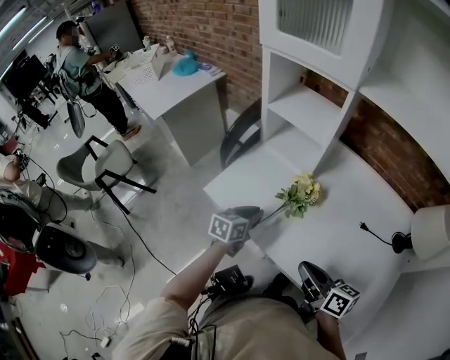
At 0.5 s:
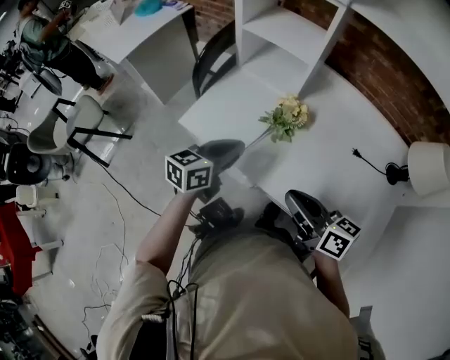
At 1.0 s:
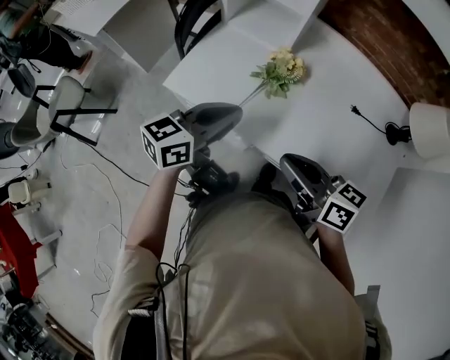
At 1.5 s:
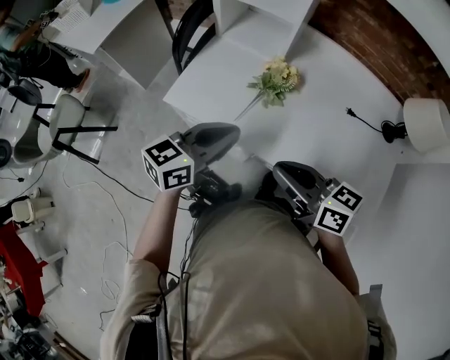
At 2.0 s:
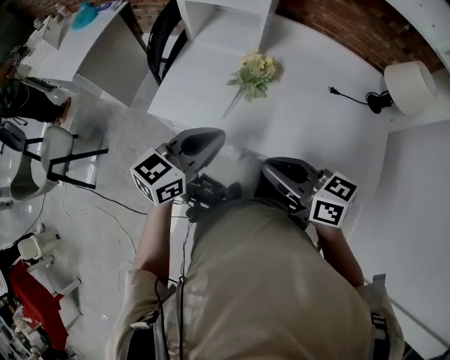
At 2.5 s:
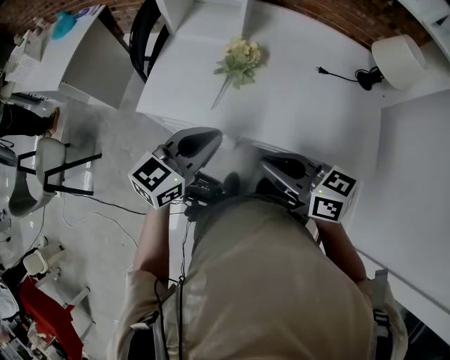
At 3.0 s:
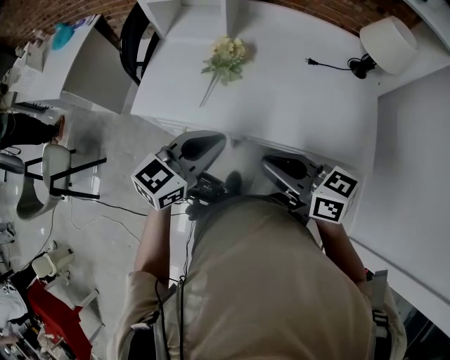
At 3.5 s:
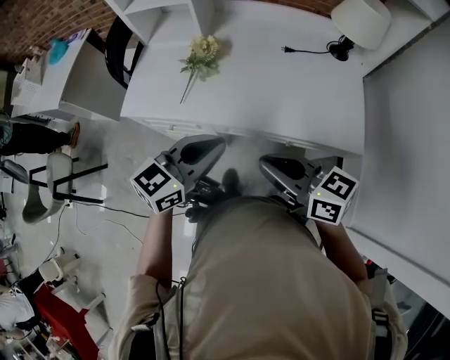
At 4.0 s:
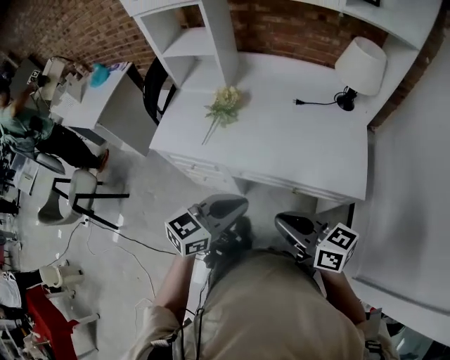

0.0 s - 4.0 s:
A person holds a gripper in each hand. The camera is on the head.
0.0 s - 2.0 s: The left gripper travels upward and backward by approximately 20 cm, and swivels approximately 40 degrees, while the right gripper moves to the left and backward, roughly 10 cm.
2.0 s - 4.0 s: The left gripper goes roughly 25 cm to the right and backward. Meanwhile the right gripper travels backward and to the right by roughly 20 cm.

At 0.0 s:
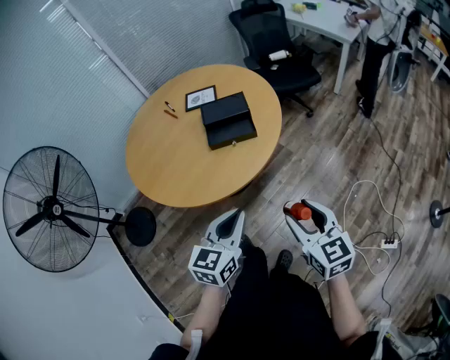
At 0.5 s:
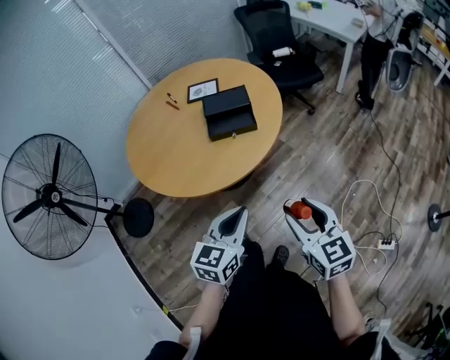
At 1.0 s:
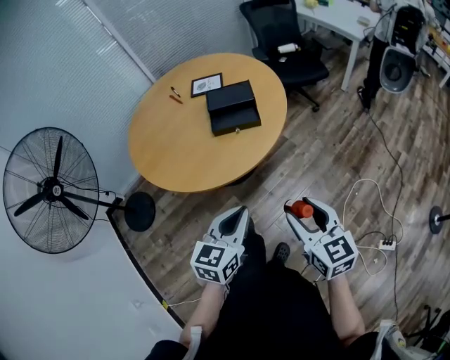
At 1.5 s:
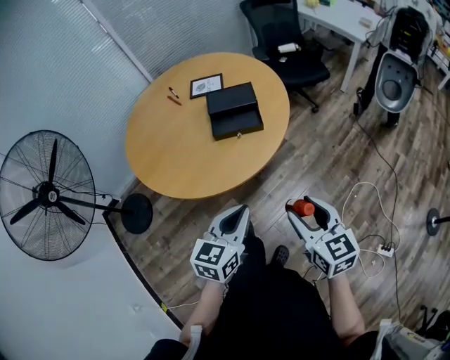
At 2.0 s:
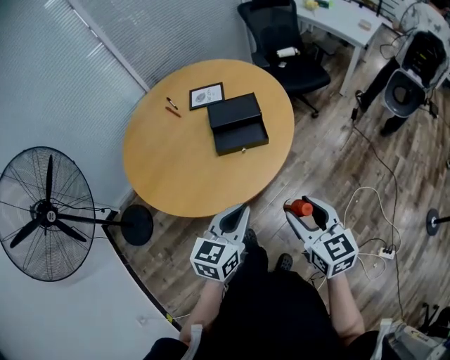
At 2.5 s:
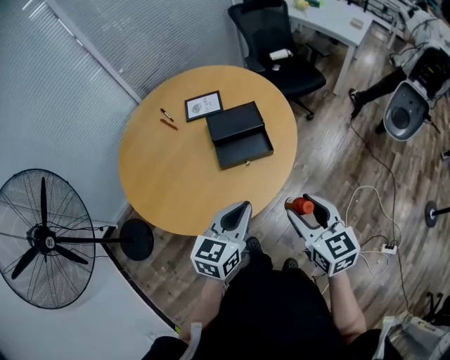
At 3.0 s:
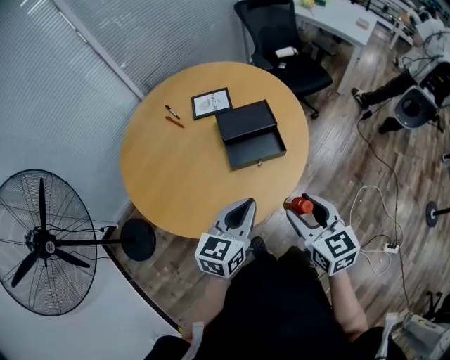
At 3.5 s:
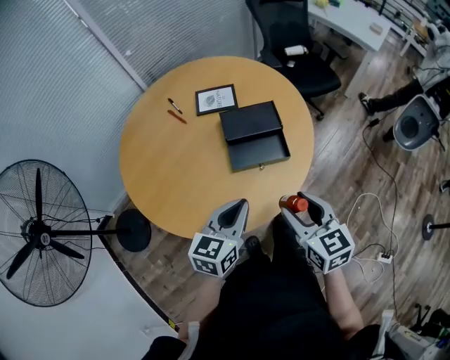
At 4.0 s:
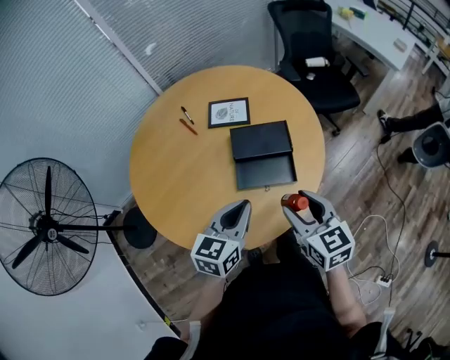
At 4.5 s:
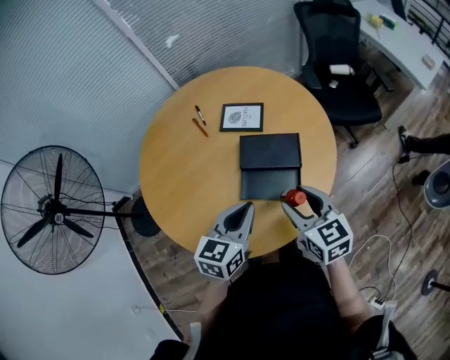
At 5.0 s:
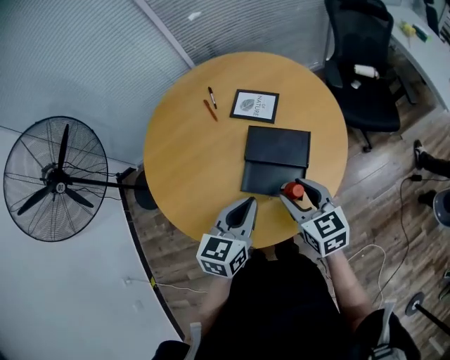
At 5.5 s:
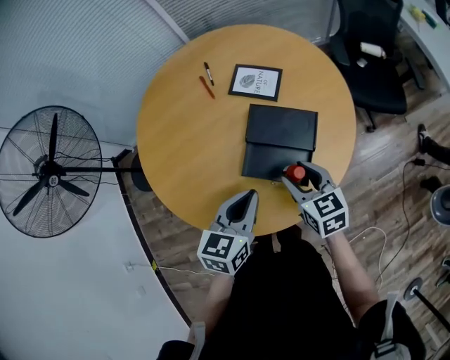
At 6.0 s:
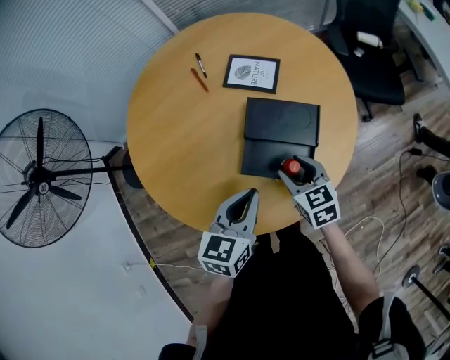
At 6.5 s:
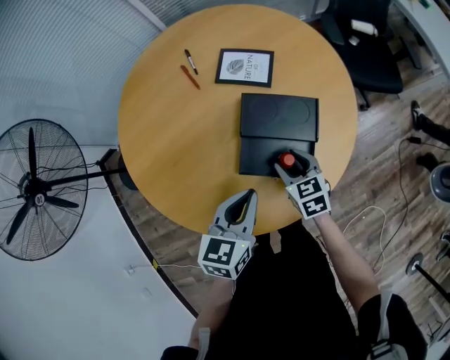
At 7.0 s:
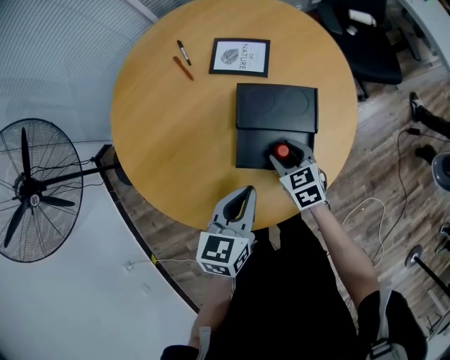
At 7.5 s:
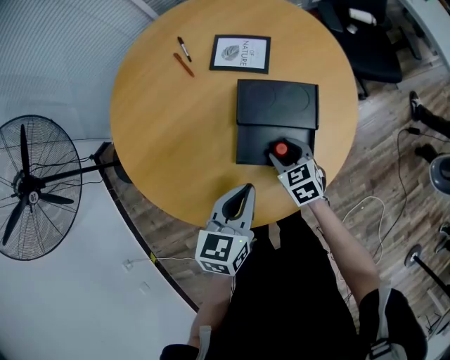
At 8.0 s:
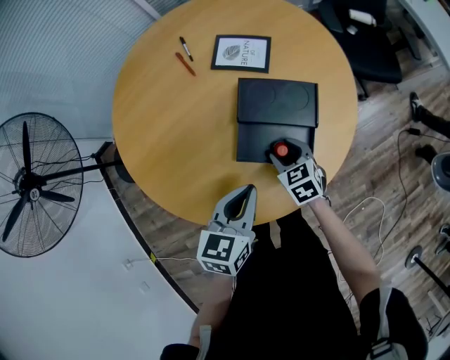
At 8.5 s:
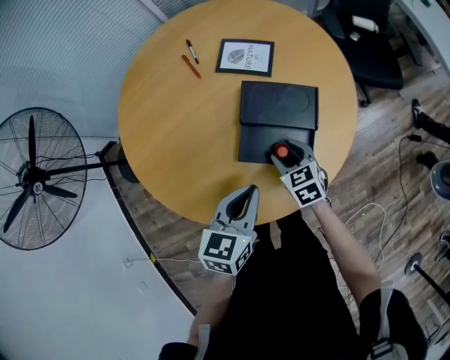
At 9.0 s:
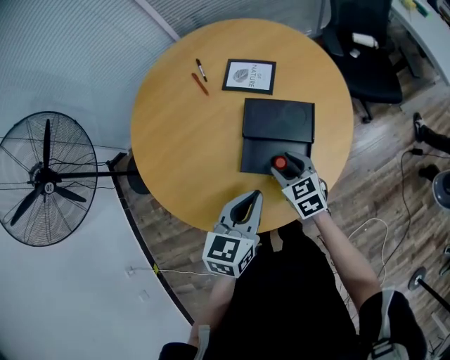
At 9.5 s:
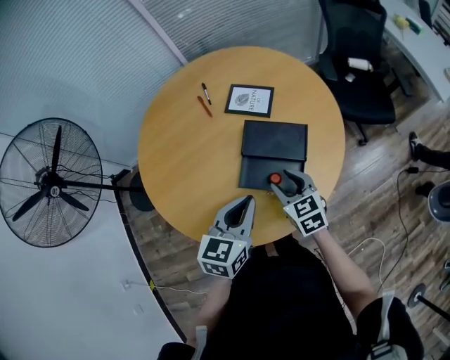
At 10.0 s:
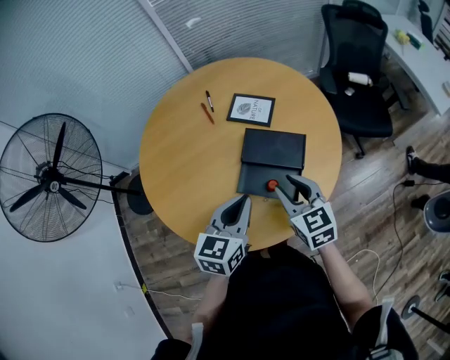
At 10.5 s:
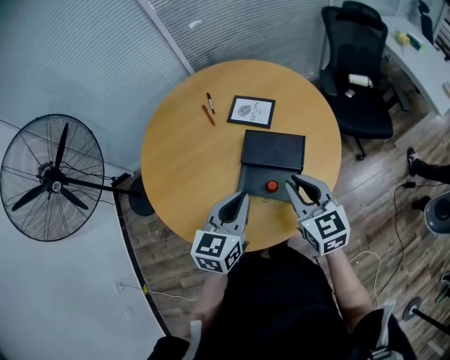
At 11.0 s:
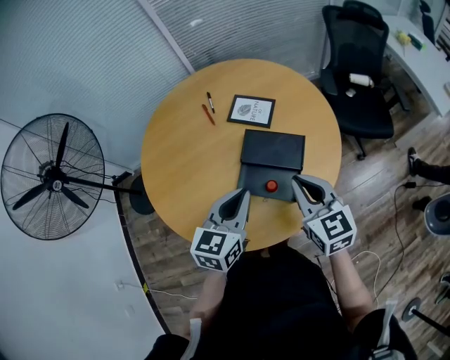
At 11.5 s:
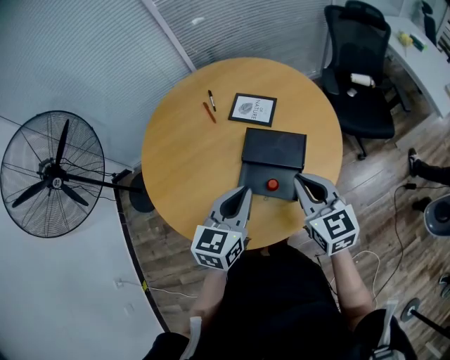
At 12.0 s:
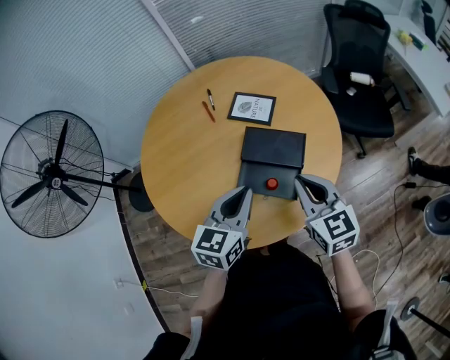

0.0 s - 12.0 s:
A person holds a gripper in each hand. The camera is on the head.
0.0 s - 2.0 s: The grippers both shift forward by roughly 10 cm.
2.0 s - 4.0 s: The grippers both shift forward by roughly 20 cm.
4.0 s - 6.0 s: The left gripper goes some 10 cm downward and forward. The right gripper goes roughly 20 cm downward and forward, and swivels roughly 20 degrees.
6.0 s - 8.0 s: The right gripper shifts roughly 10 cm downward.
8.0 s - 10.0 s: The right gripper moves upward, about 20 cm, and changes its angle by roughly 20 degrees. Meanwhile the left gripper is displaced upward by approximately 10 cm.
10.0 s - 12.0 s: The right gripper goes about 5 cm upward, and closes up.

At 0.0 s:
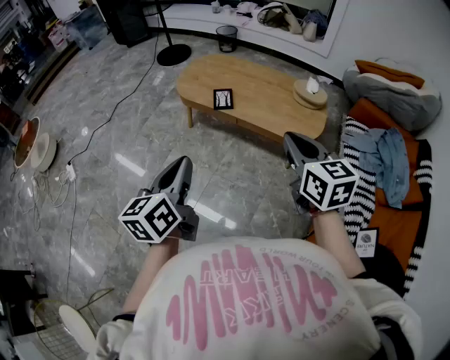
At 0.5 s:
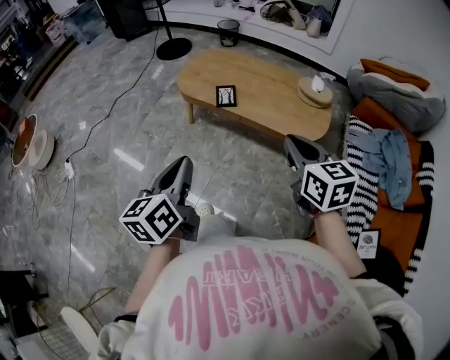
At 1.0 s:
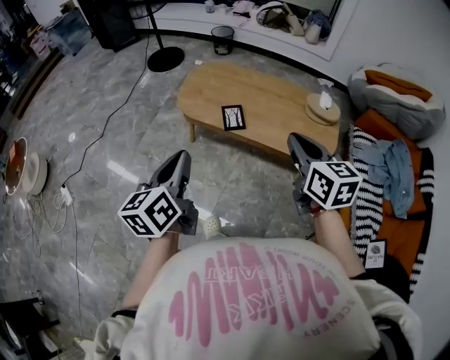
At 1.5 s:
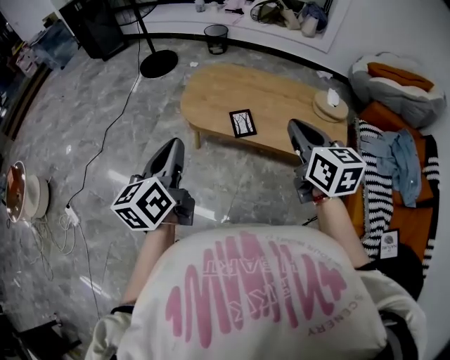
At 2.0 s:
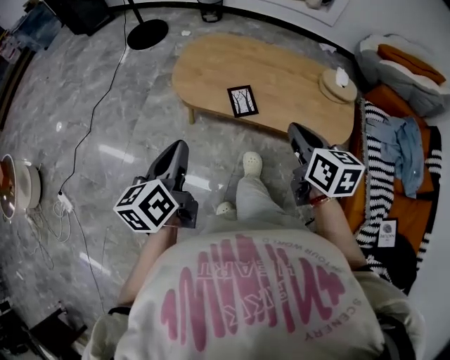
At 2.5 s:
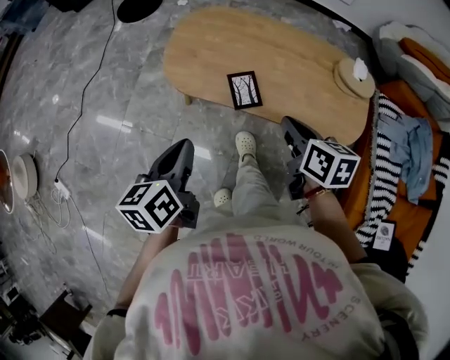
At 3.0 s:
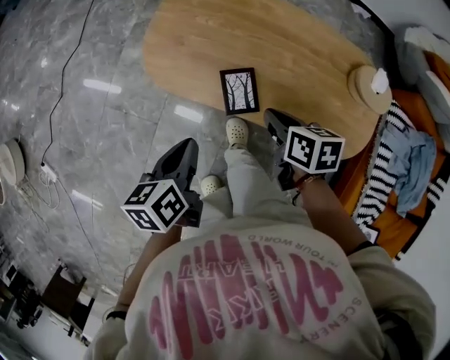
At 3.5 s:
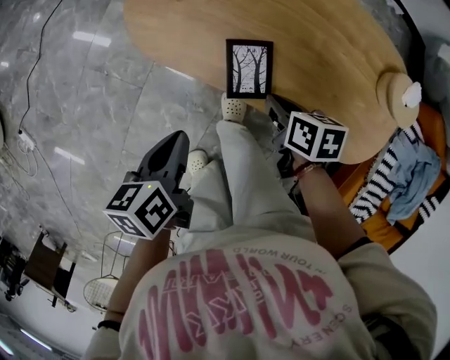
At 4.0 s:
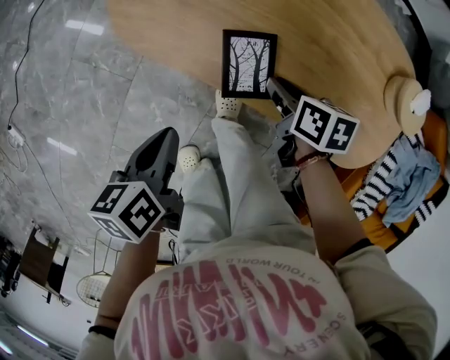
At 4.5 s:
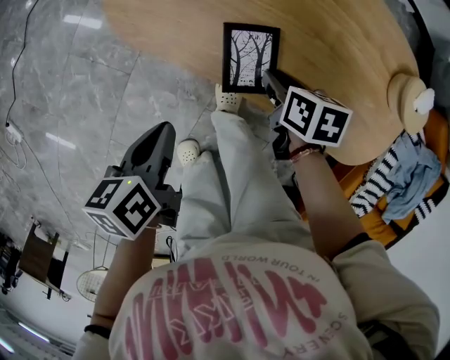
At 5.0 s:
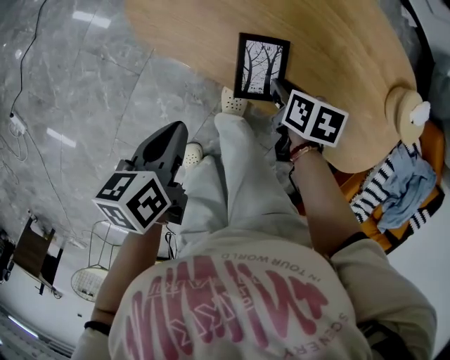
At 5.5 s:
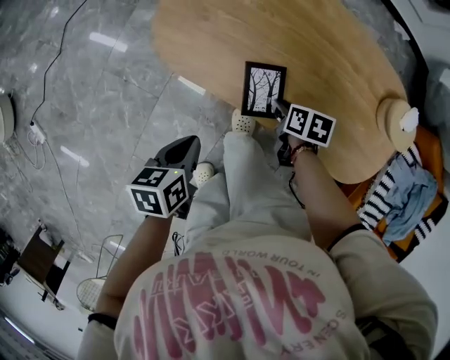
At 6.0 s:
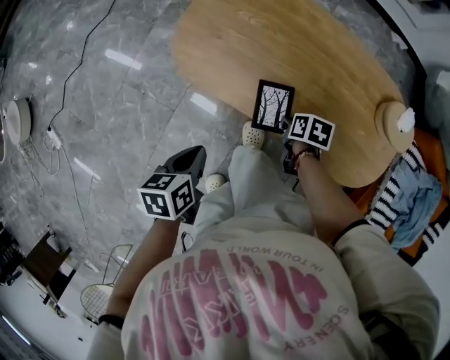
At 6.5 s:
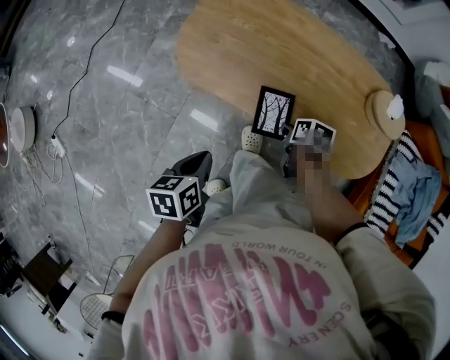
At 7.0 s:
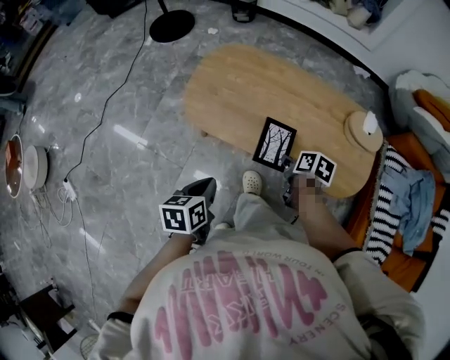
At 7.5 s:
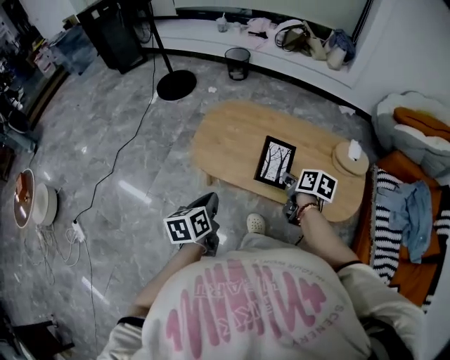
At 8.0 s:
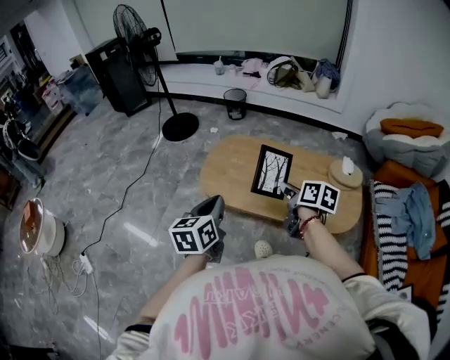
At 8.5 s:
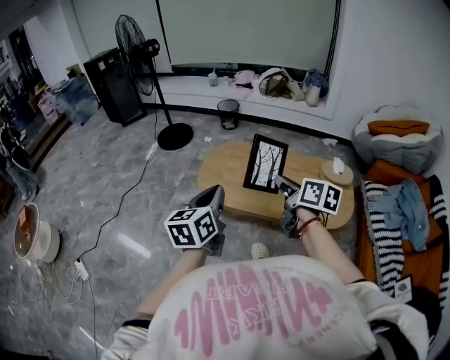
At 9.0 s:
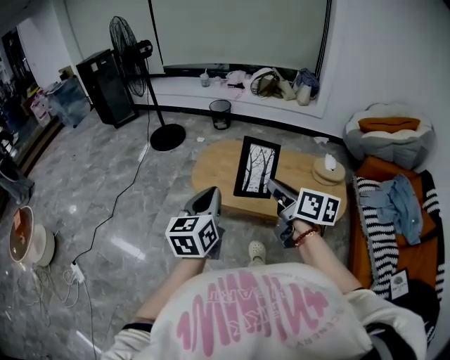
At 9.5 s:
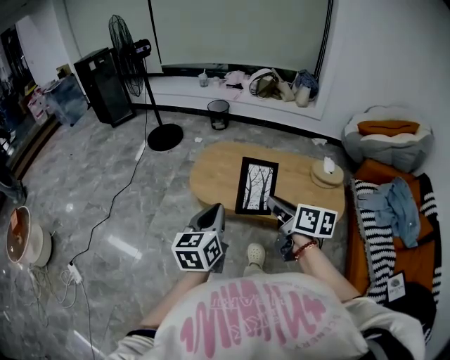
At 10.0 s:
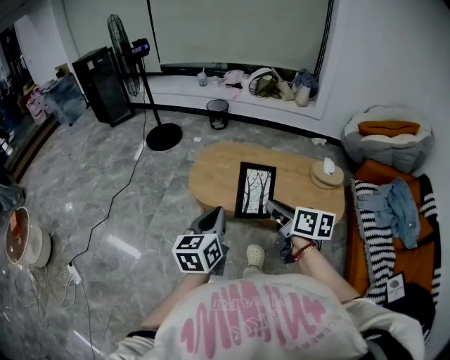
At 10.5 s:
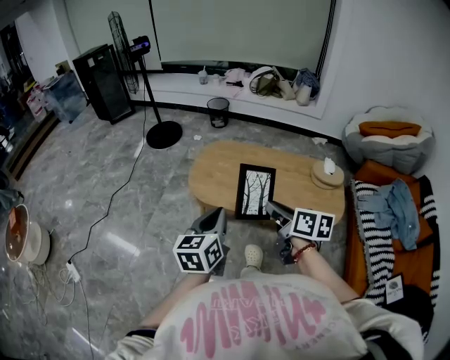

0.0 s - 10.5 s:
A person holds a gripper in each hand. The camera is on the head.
0.0 s - 2.0 s: Both grippers move forward and to the left, roughly 35 cm. The right gripper changes its angle by some 20 degrees.
2.0 s - 4.0 s: The two grippers go roughly 40 cm downward and forward. The left gripper swivels approximately 40 degrees, while the right gripper changes its angle by approximately 40 degrees.
4.0 s - 6.5 s: The left gripper moves upward and backward, approximately 10 cm, while the right gripper shifts roughly 5 cm backward.
6.5 s - 8.5 s: The grippers both shift upward by some 35 cm. The right gripper angles its fingers upward, by roughly 50 degrees. Meanwhile the left gripper tips its fingers upward by about 40 degrees.
8.5 s - 10.5 s: The left gripper shifts by approximately 5 cm. The right gripper goes about 5 cm backward.
